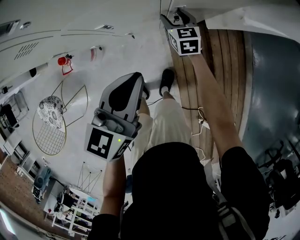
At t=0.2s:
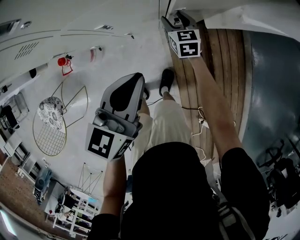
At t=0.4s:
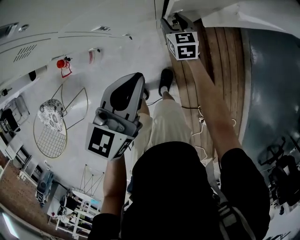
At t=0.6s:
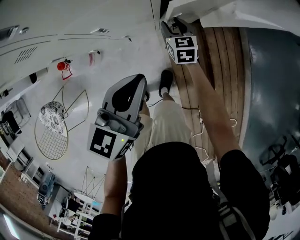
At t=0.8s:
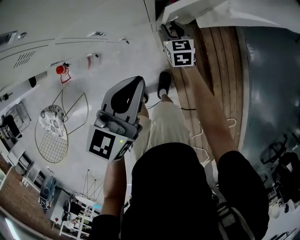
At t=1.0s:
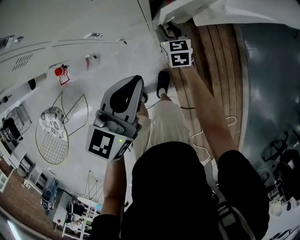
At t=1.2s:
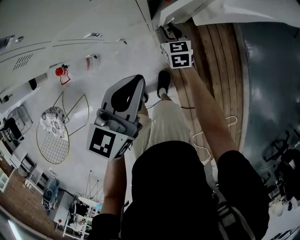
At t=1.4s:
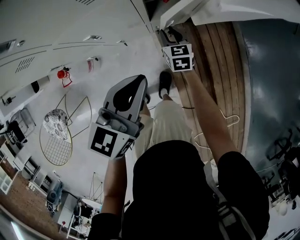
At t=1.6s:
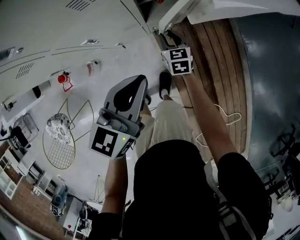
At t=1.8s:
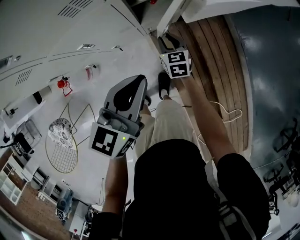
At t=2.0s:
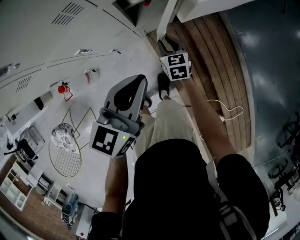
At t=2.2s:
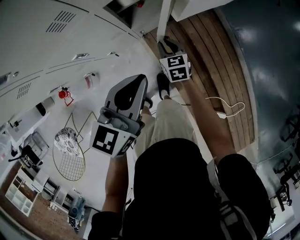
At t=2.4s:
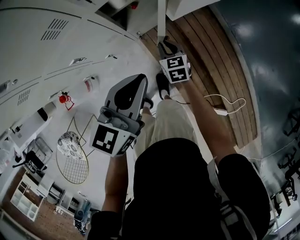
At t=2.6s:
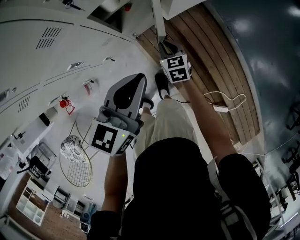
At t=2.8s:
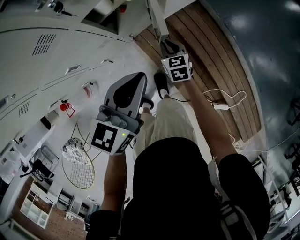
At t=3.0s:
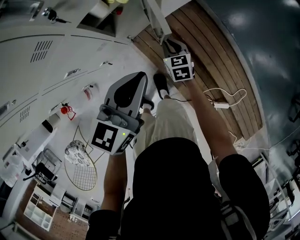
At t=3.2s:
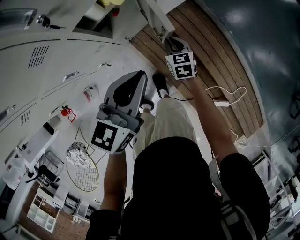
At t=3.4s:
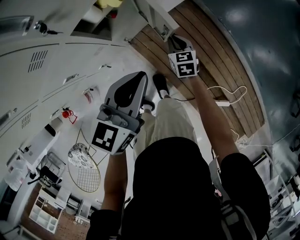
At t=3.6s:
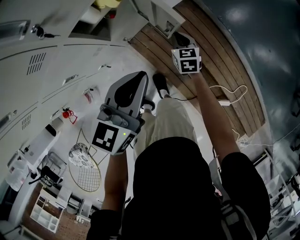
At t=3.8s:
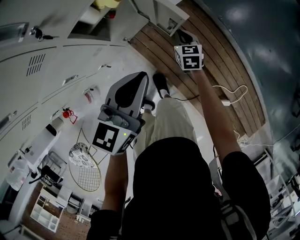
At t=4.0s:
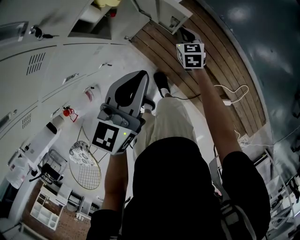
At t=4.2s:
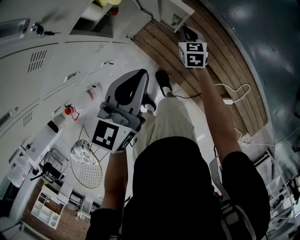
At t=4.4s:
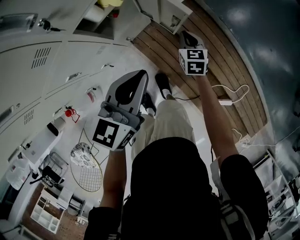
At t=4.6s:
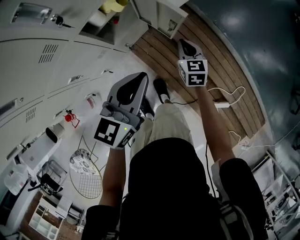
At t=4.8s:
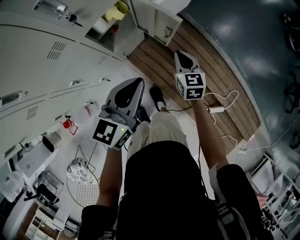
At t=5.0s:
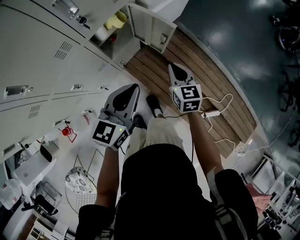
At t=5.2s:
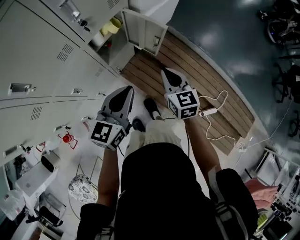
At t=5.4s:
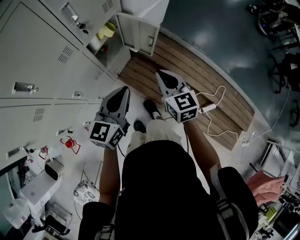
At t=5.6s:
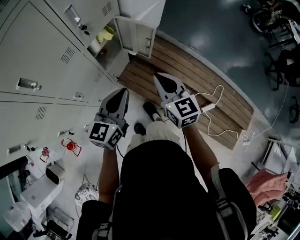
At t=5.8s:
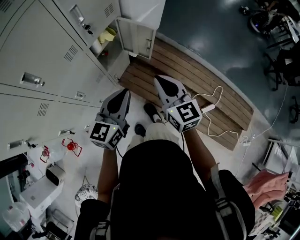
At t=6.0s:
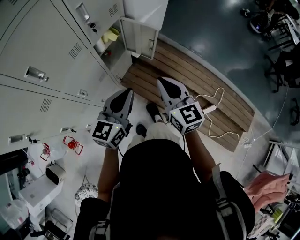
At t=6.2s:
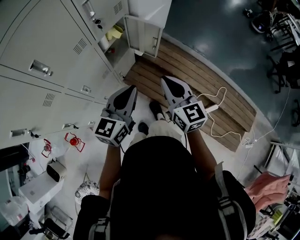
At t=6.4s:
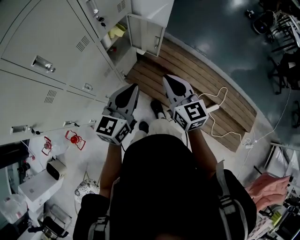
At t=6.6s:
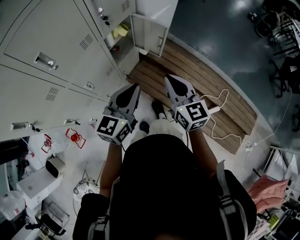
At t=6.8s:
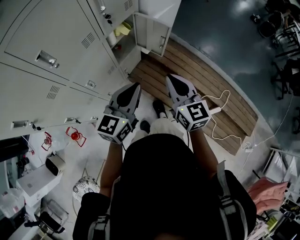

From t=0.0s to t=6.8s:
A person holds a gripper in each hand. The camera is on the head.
From t=0.0s to t=1.4s: The right gripper heads to the right and backward, covering approximately 10 cm, and closes its fingers, while the left gripper goes roughly 5 cm to the right.
From t=1.4s to t=2.8s: Both grippers move to the right, roughly 15 cm.
From t=2.8s to t=4.0s: The left gripper ends up about 5 cm from where it was. Meanwhile the right gripper shifts roughly 15 cm to the right and forward.
From t=4.0s to t=5.4s: The left gripper shifts approximately 15 cm backward and to the left. The right gripper shifts roughly 40 cm upward and backward, and rotates some 20 degrees.
From t=5.4s to t=6.8s: The right gripper is displaced backward and upward by about 10 cm. Meanwhile the left gripper goes roughly 5 cm backward.

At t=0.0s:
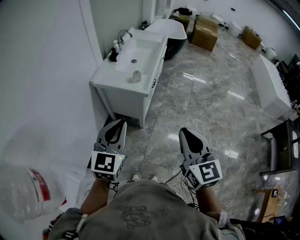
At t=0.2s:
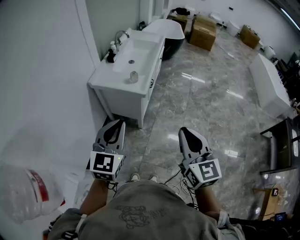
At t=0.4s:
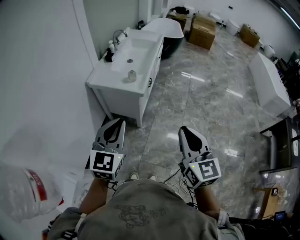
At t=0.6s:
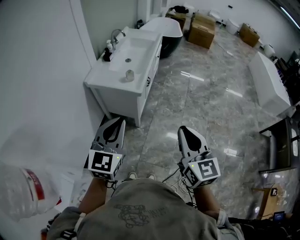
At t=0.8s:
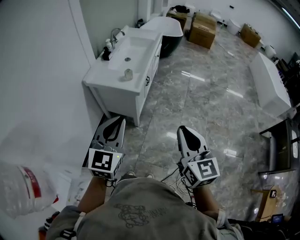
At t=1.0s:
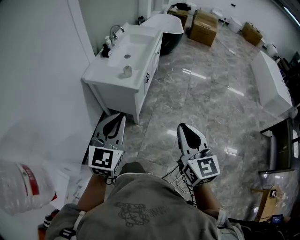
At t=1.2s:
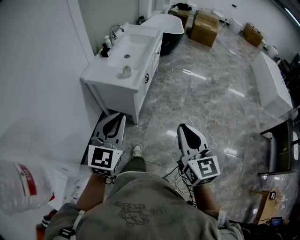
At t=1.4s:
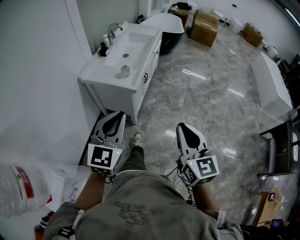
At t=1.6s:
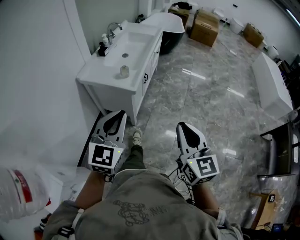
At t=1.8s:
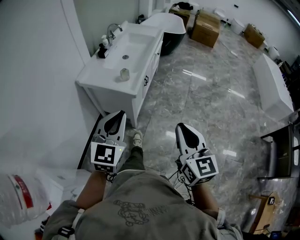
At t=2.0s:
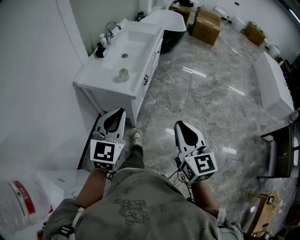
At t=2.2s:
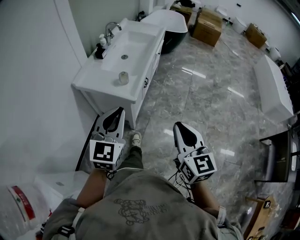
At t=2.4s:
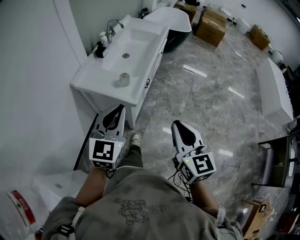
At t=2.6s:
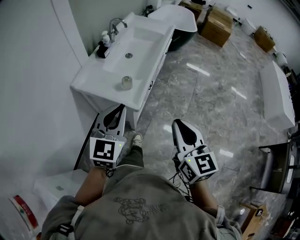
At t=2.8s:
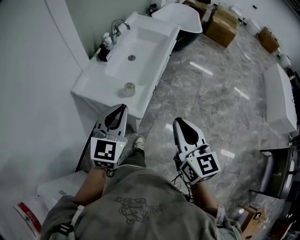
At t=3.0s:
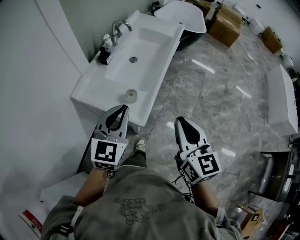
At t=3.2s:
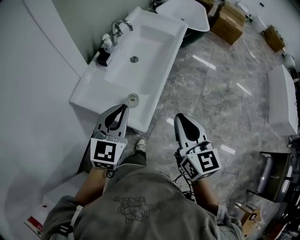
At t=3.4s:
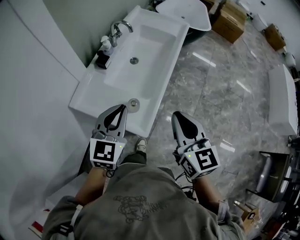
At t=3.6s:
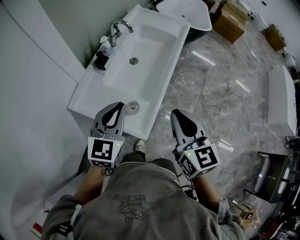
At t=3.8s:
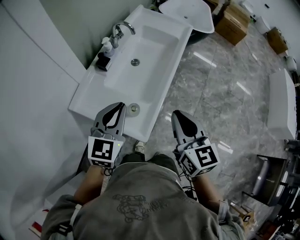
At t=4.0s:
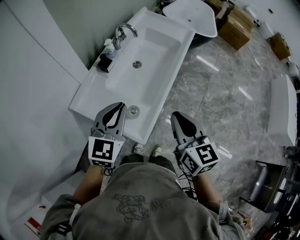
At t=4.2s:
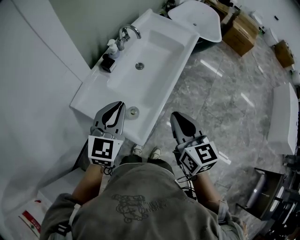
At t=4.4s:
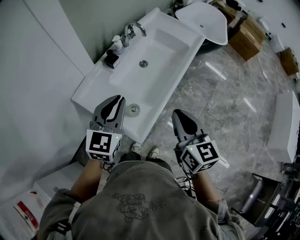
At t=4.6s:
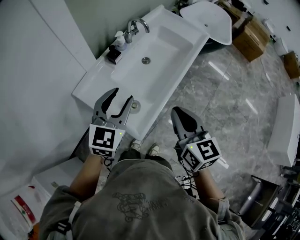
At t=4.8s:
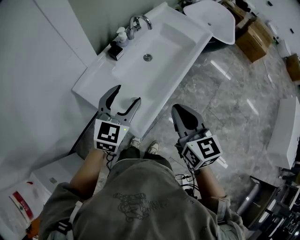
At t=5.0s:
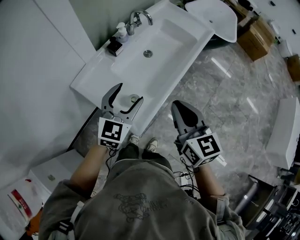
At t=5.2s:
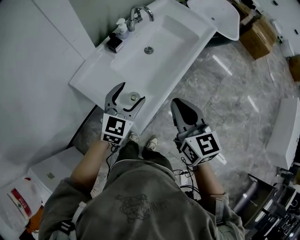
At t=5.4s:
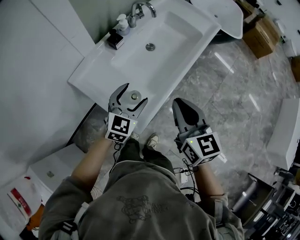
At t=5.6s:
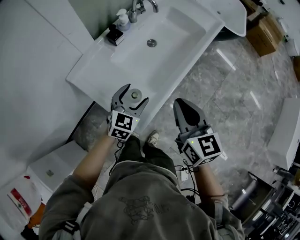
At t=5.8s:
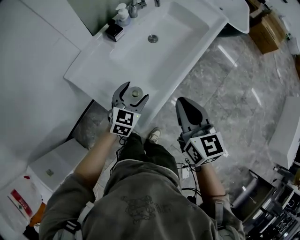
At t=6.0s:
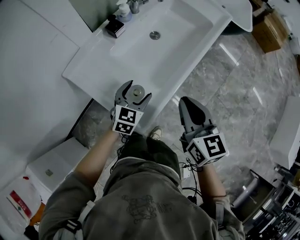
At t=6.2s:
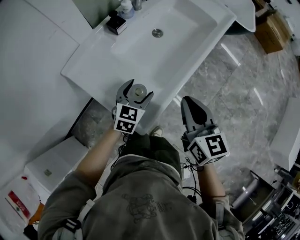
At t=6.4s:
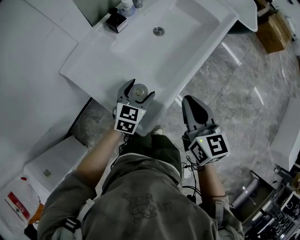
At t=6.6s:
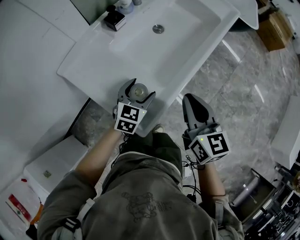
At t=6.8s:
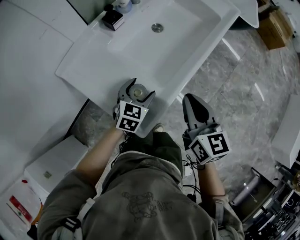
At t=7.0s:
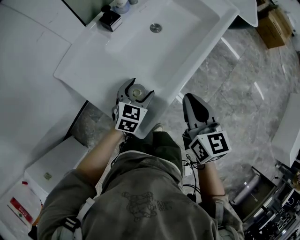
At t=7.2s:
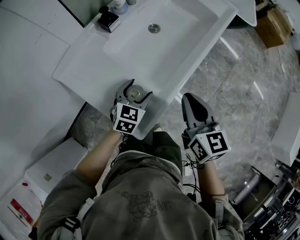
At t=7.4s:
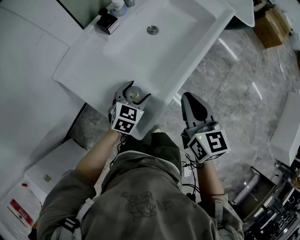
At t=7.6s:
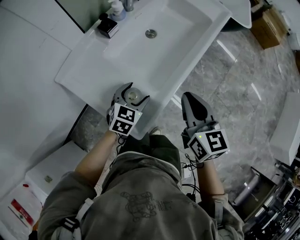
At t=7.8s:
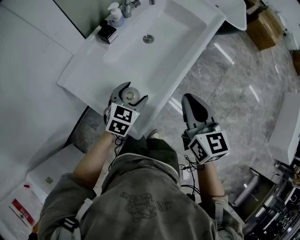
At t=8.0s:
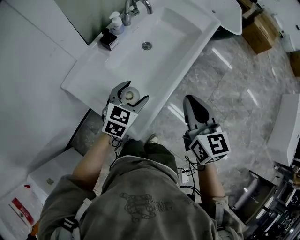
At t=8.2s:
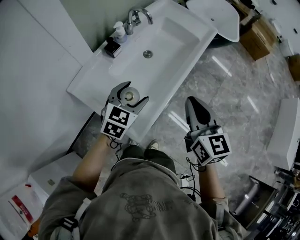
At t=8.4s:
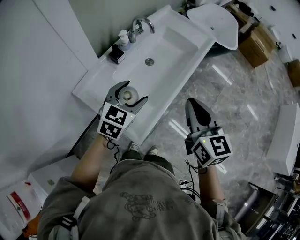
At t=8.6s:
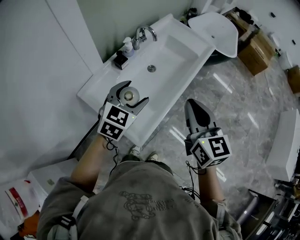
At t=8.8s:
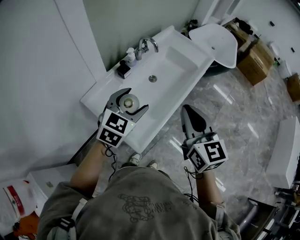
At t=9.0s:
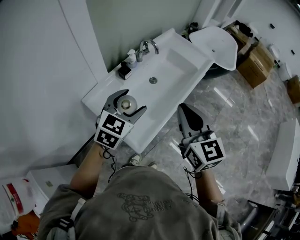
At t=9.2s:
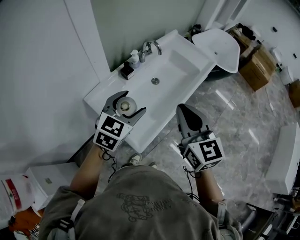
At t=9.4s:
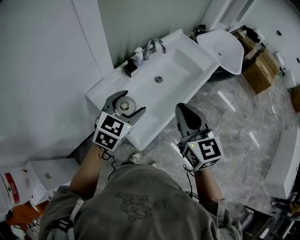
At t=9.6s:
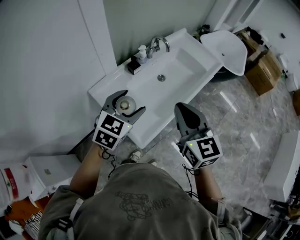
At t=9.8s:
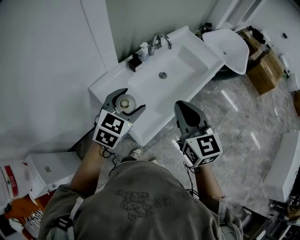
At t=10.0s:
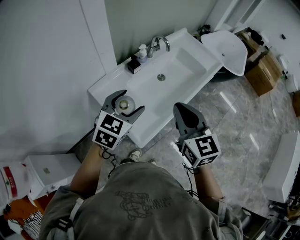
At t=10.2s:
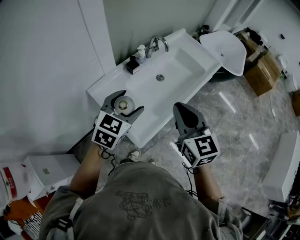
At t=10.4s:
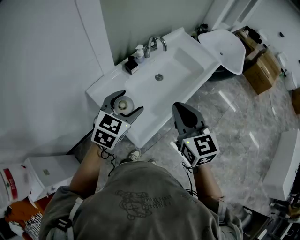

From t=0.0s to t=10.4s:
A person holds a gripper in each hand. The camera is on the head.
From t=0.0s to t=1.4s: Both grippers move to the right, approximately 10 cm.
From t=1.4s to t=3.0s: Both grippers move forward, approximately 35 cm.
From t=3.0s to t=4.4s: The grippers both shift forward by roughly 15 cm.
From t=4.4s to t=6.0s: The left gripper is displaced downward by roughly 25 cm, and opens up; the right gripper shifts about 10 cm downward.
From t=6.0s to t=7.4s: Both grippers travel together downward, approximately 5 cm.
From t=7.4s to t=9.0s: The grippers both shift upward by about 30 cm.
From t=9.0s to t=10.4s: The grippers make only small movements.

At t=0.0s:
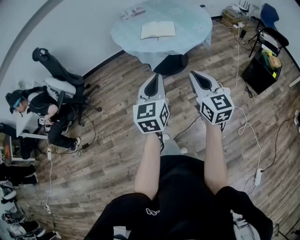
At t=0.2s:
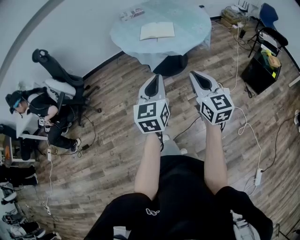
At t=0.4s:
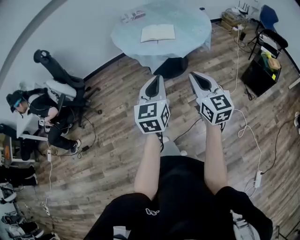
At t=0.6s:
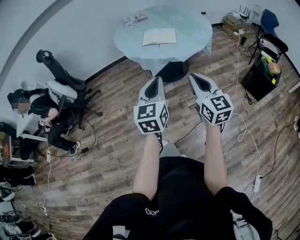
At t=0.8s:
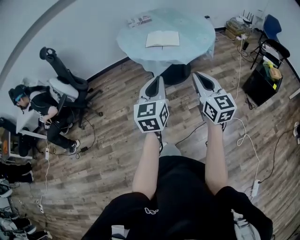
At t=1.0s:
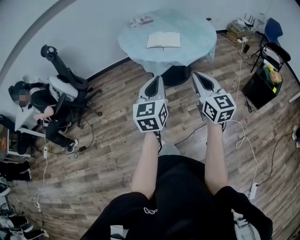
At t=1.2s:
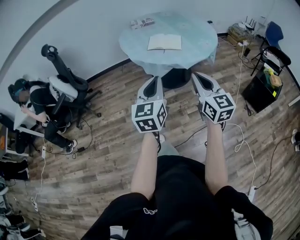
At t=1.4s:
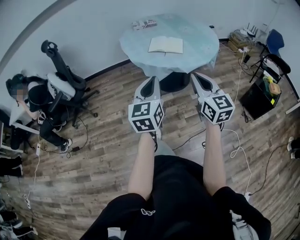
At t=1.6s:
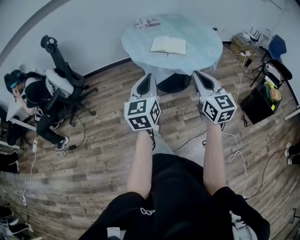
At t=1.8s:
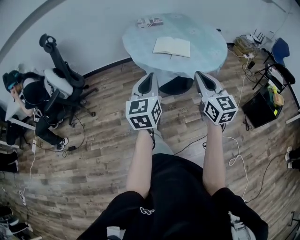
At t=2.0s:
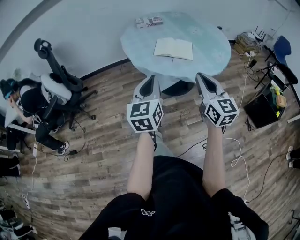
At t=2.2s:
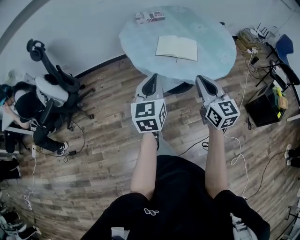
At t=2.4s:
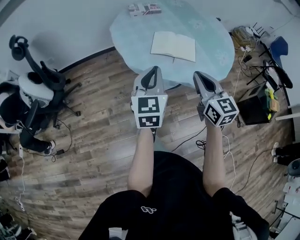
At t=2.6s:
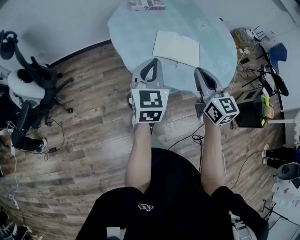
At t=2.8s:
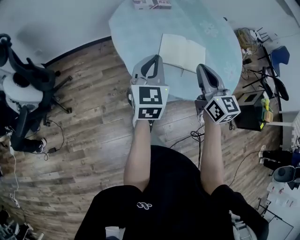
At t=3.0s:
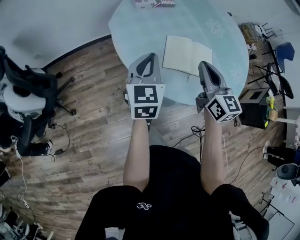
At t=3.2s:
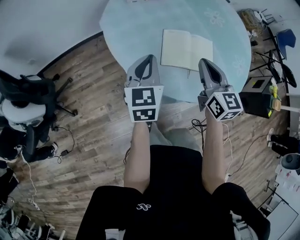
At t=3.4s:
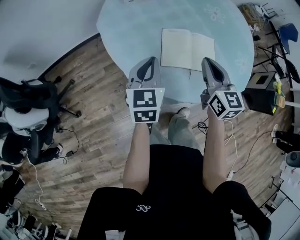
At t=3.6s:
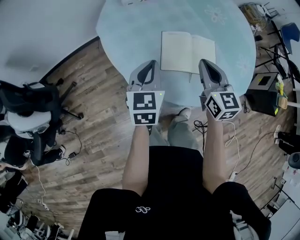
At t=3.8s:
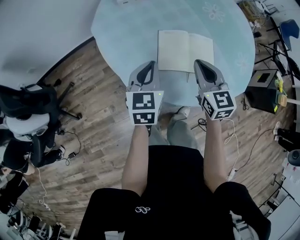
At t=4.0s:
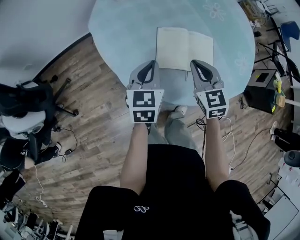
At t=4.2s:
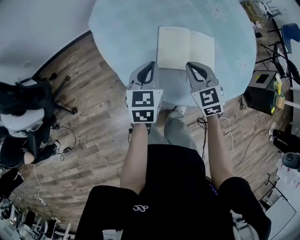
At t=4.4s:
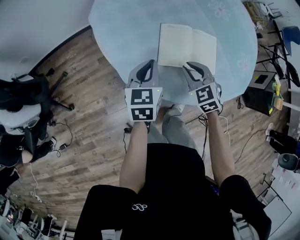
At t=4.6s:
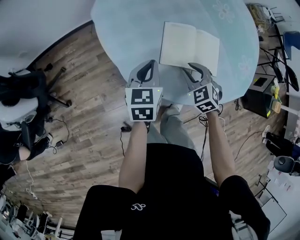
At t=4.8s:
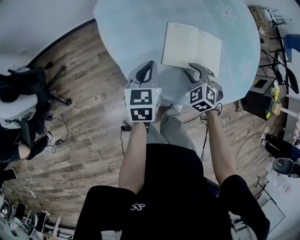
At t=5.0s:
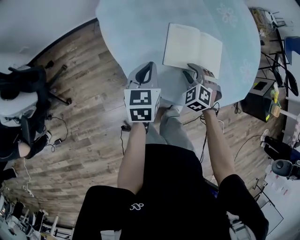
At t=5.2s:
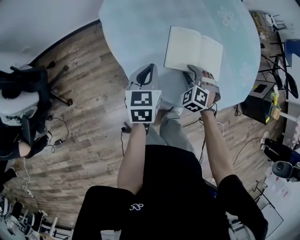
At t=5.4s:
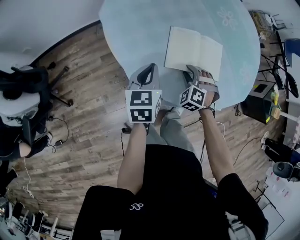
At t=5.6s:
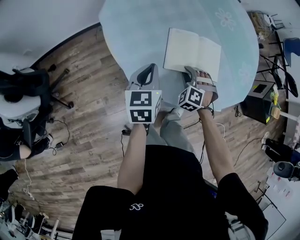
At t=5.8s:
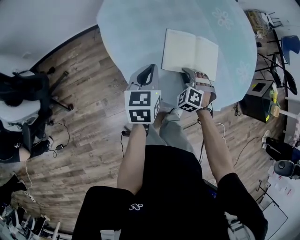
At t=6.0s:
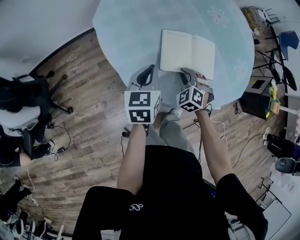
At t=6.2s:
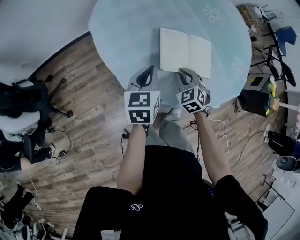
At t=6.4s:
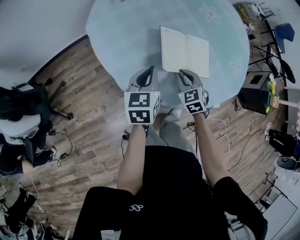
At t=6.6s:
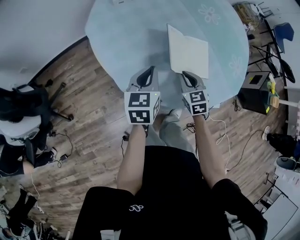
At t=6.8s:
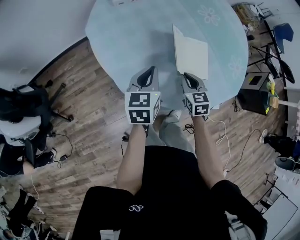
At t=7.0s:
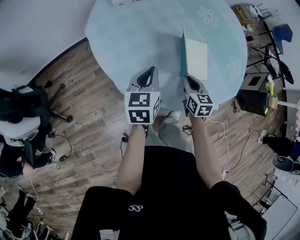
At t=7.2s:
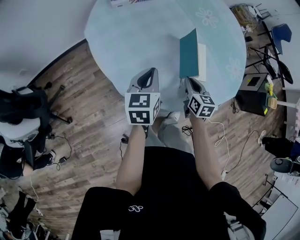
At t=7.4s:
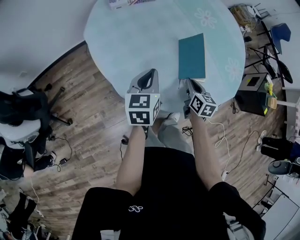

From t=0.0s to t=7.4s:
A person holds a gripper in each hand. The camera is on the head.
From t=0.0s to t=1.4s: The left gripper changes place by roughly 5 cm. The right gripper goes about 5 cm forward.
From t=1.4s to t=3.0s: The pair of grippers is taken forward, approximately 60 cm.
From t=3.0s to t=4.4s: The right gripper moves downward, some 20 cm, and tilts its fingers some 30 degrees downward, while the left gripper travels downward and forward by about 15 cm.
From t=4.4s to t=6.0s: The right gripper goes some 5 cm downward, rotates about 30 degrees, and opens and closes again.
From t=6.0s to t=7.4s: The right gripper travels to the right by roughly 10 cm, and rotates around the line of its fingers by roughly 80 degrees, clockwise from behind.
